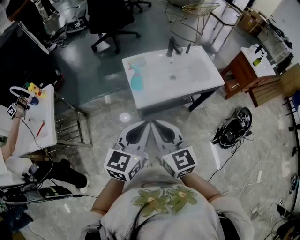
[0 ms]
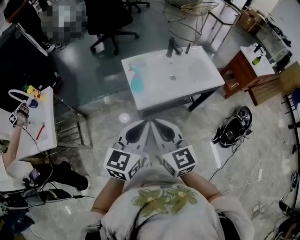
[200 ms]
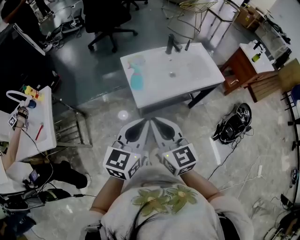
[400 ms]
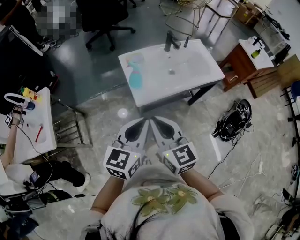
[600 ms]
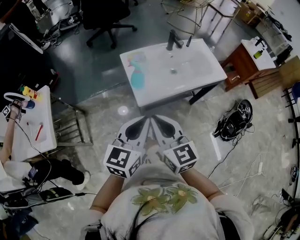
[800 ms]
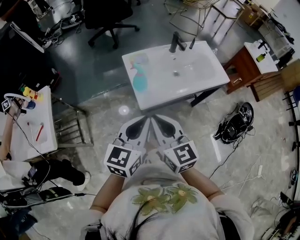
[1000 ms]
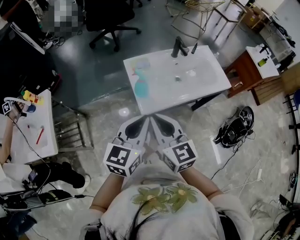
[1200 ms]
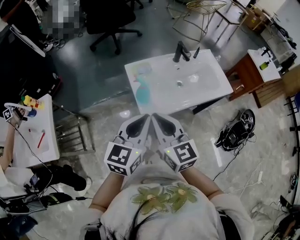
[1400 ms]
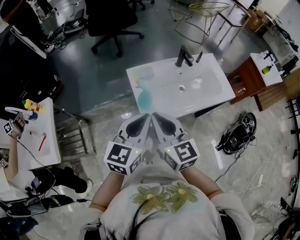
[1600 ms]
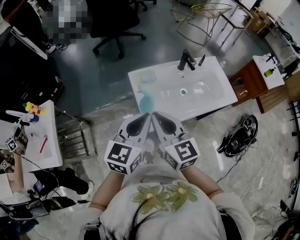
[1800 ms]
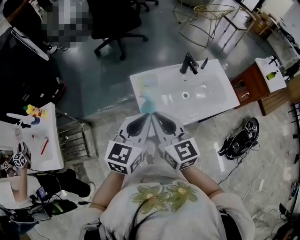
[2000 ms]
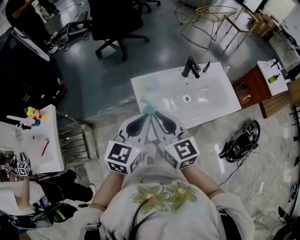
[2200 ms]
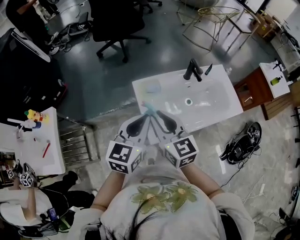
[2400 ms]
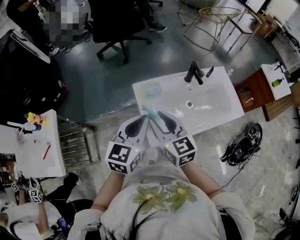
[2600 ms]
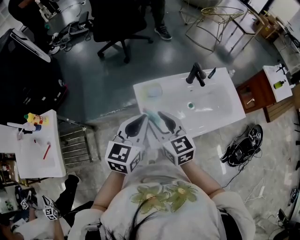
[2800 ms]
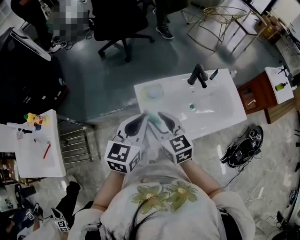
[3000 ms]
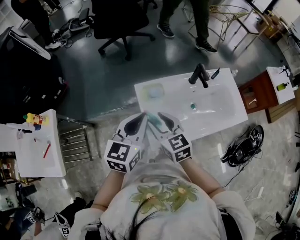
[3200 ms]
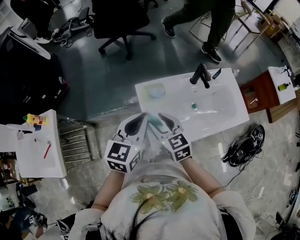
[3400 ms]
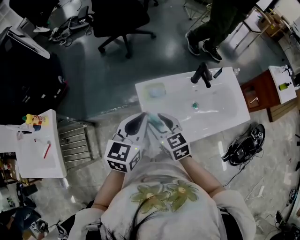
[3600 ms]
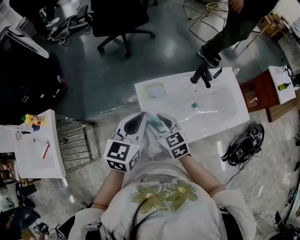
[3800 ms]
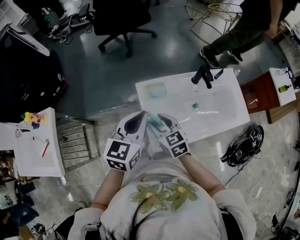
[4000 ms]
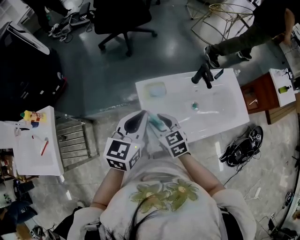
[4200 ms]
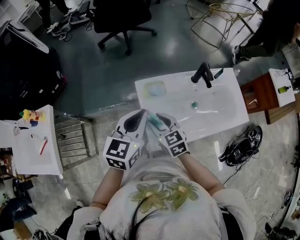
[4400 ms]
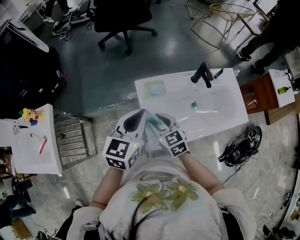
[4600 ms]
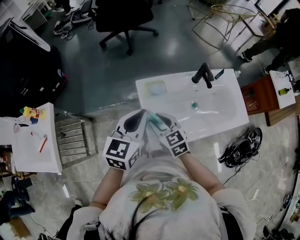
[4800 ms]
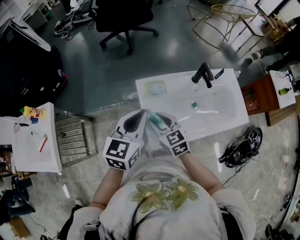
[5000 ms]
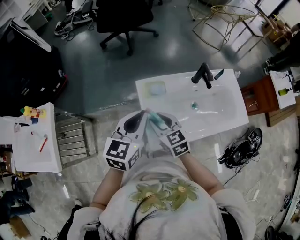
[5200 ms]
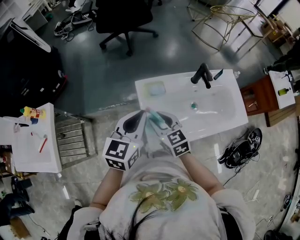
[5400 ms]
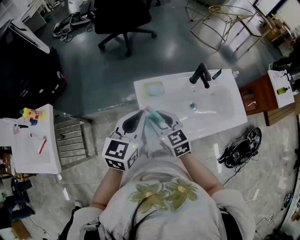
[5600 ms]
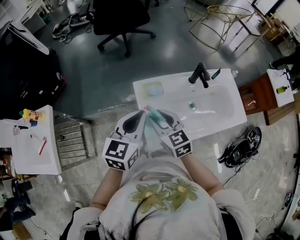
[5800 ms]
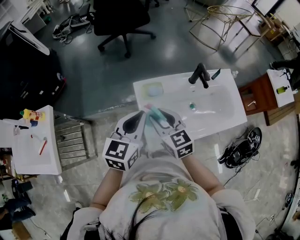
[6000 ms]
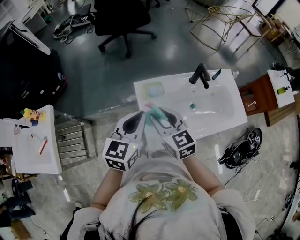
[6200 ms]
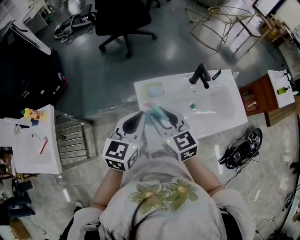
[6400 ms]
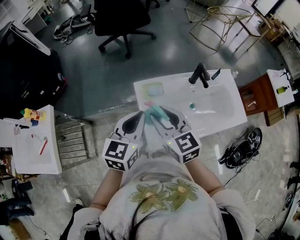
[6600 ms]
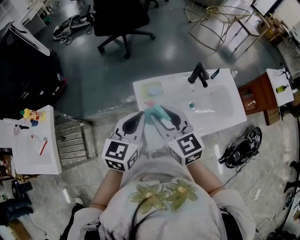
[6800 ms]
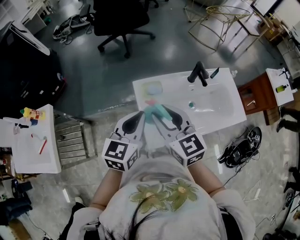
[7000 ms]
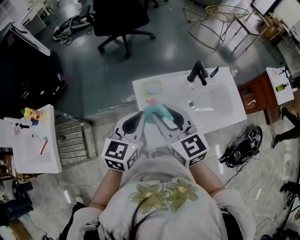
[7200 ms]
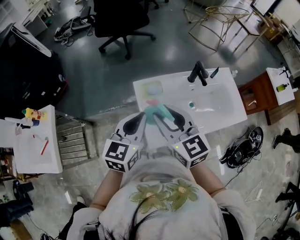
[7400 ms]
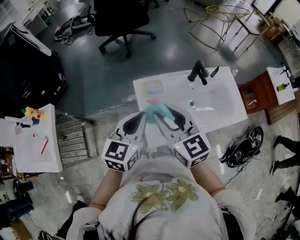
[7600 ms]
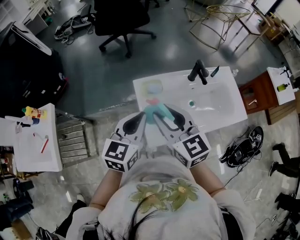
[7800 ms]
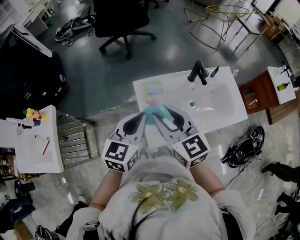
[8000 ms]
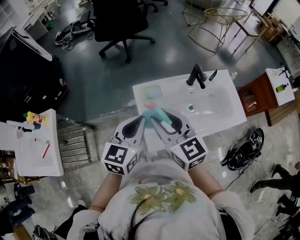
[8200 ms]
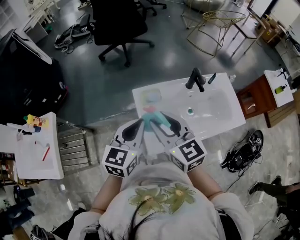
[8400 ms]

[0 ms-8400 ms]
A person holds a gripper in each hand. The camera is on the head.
0 ms to 1400 ms: Both grippers move forward, roughly 10 cm.
1400 ms to 2800 ms: The two grippers go about 15 cm forward. The right gripper opens its fingers.
2800 ms to 4200 ms: The right gripper is displaced downward by roughly 10 cm.
4200 ms to 5600 ms: There are only small adjustments of the grippers.
5600 ms to 7000 ms: The right gripper heads upward, covering some 10 cm.
7000 ms to 8400 ms: The grippers move only a little.

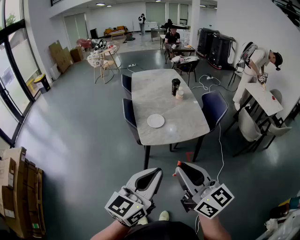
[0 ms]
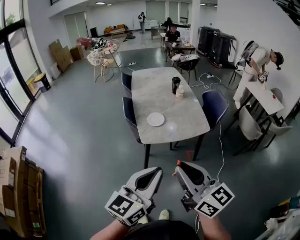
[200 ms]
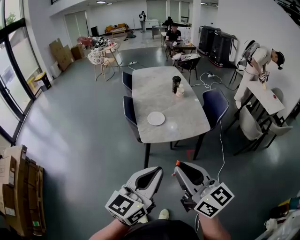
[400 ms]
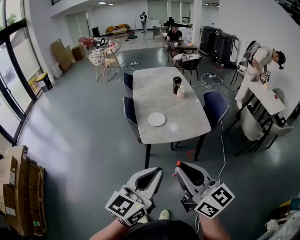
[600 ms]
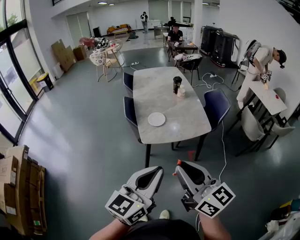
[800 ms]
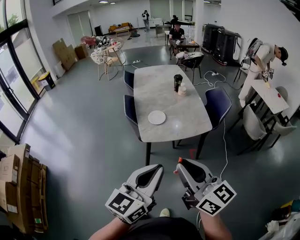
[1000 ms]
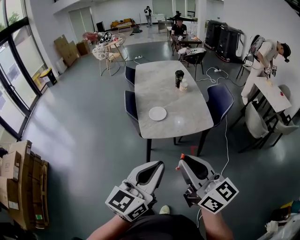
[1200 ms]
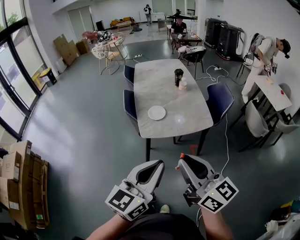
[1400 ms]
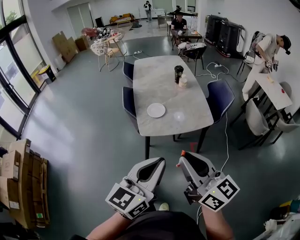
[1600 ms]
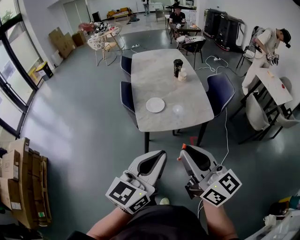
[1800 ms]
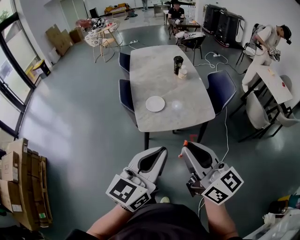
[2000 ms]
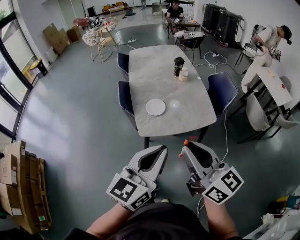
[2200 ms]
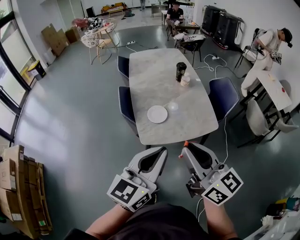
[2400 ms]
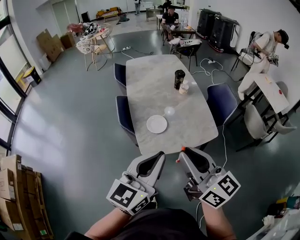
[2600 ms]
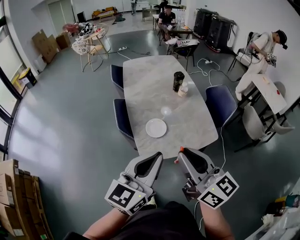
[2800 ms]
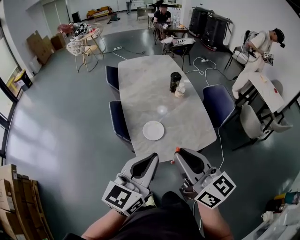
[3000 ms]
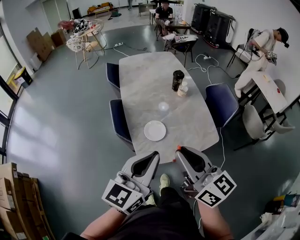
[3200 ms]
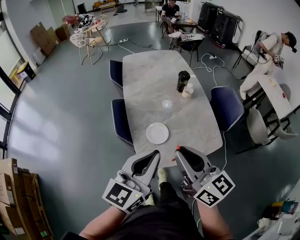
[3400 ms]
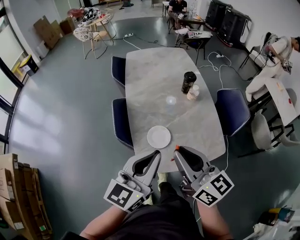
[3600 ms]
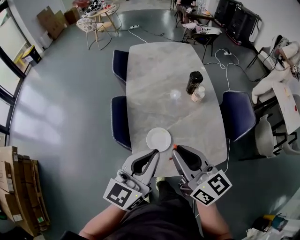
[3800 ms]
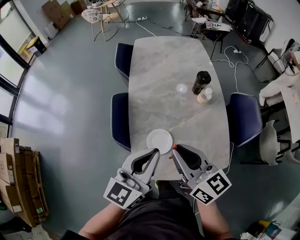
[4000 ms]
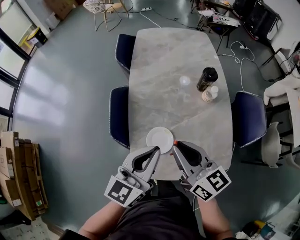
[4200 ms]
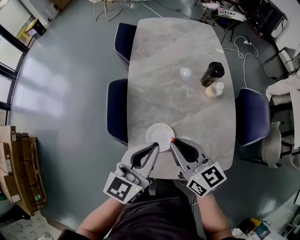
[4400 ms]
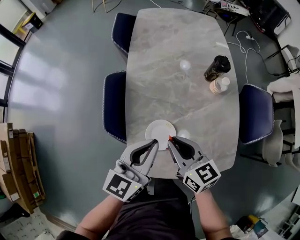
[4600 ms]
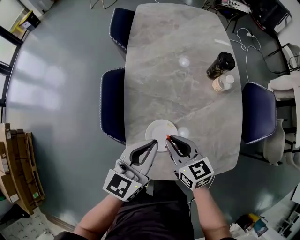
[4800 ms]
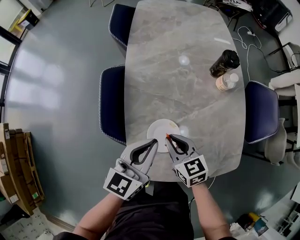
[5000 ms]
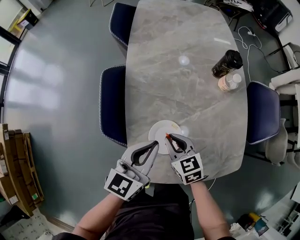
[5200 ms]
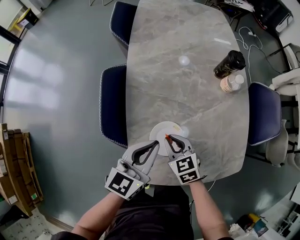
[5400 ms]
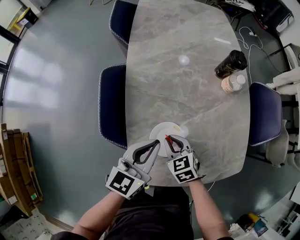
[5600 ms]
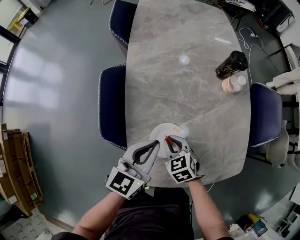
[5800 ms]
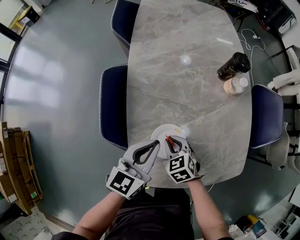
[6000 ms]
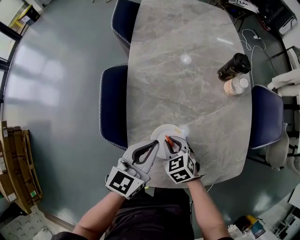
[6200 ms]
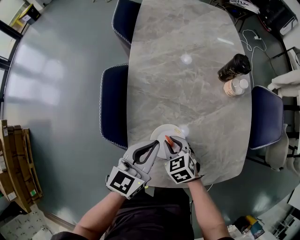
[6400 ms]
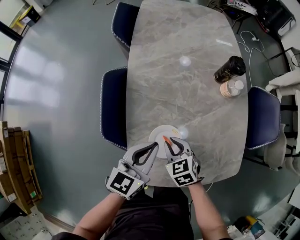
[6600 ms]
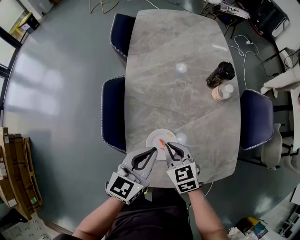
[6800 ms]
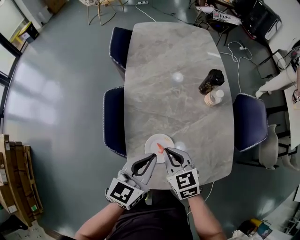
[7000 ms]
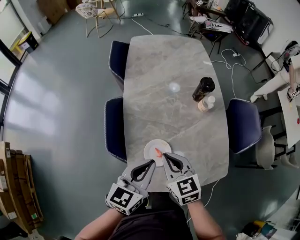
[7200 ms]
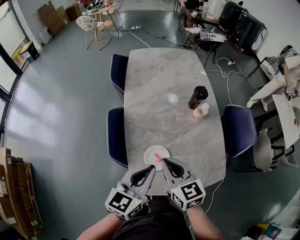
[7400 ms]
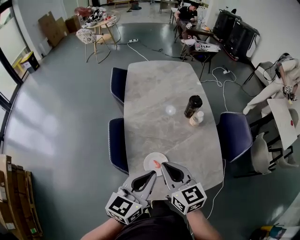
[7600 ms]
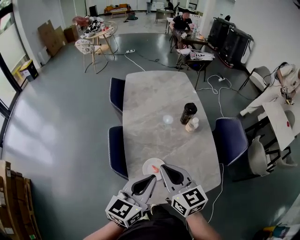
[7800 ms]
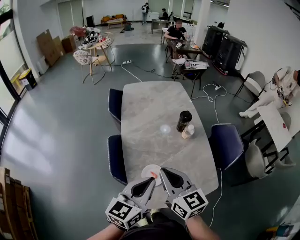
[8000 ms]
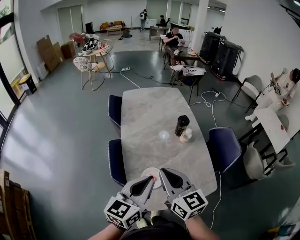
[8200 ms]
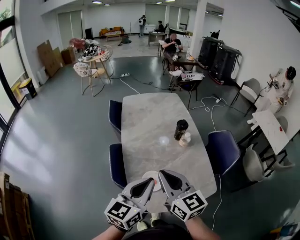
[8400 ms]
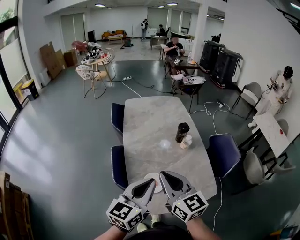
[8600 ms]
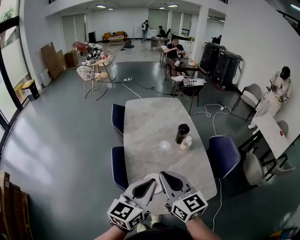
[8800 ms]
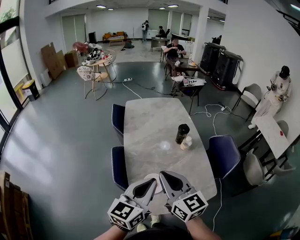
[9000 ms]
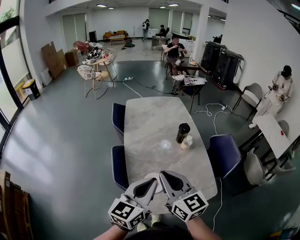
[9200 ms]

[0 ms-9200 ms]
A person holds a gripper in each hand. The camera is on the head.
0 ms to 1600 ms: Both grippers move to the right, some 5 cm.
1600 ms to 3000 ms: The left gripper moves forward, roughly 25 cm. Meanwhile the right gripper shifts roughly 25 cm forward and to the left.
3000 ms to 4600 ms: The grippers both shift forward and downward by approximately 35 cm. The right gripper swivels approximately 30 degrees.
4600 ms to 6200 ms: The right gripper heads downward, covering roughly 20 cm, and tips its fingers downward by approximately 30 degrees. Meanwhile the left gripper travels downward by some 10 cm.
6200 ms to 7600 ms: The right gripper heads upward, covering approximately 35 cm, and angles its fingers upward, by roughly 40 degrees; the left gripper goes some 20 cm upward.
7600 ms to 9200 ms: The two grippers go some 10 cm upward.

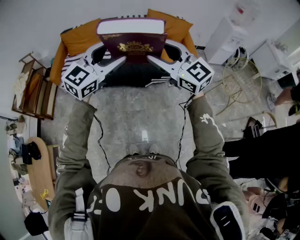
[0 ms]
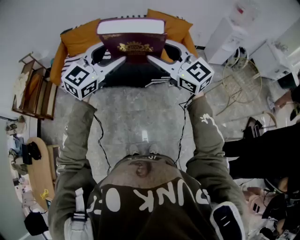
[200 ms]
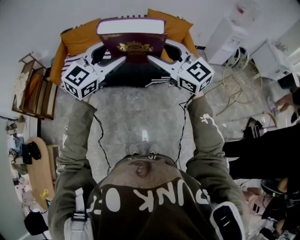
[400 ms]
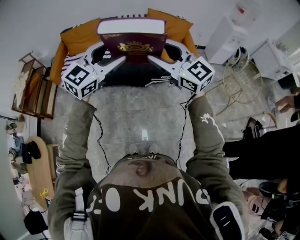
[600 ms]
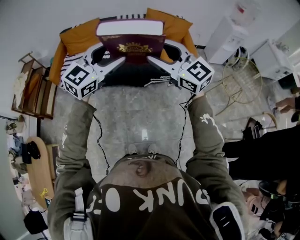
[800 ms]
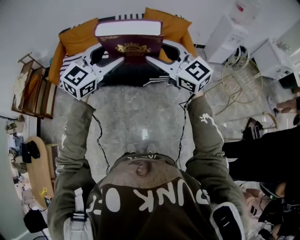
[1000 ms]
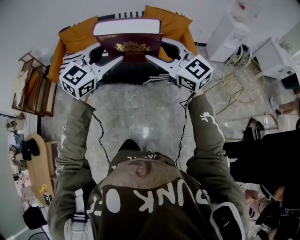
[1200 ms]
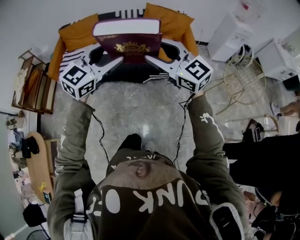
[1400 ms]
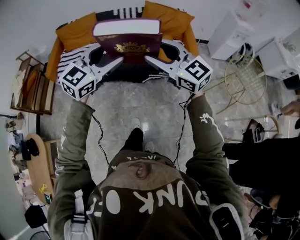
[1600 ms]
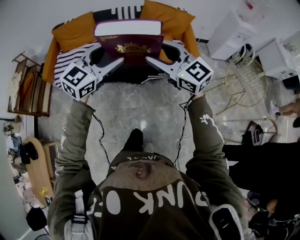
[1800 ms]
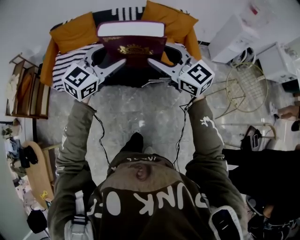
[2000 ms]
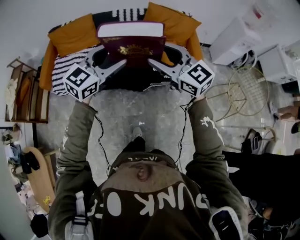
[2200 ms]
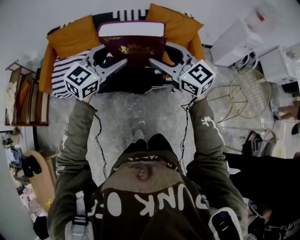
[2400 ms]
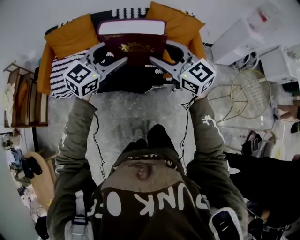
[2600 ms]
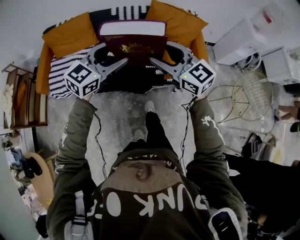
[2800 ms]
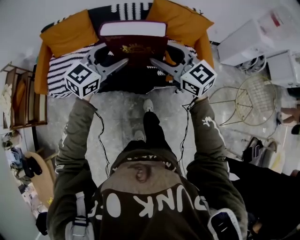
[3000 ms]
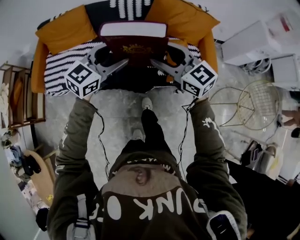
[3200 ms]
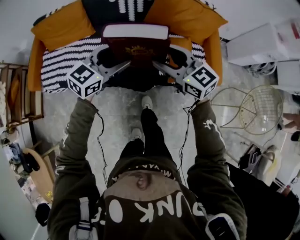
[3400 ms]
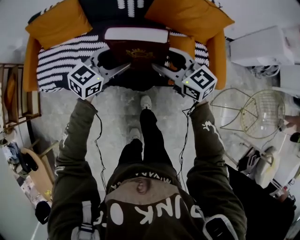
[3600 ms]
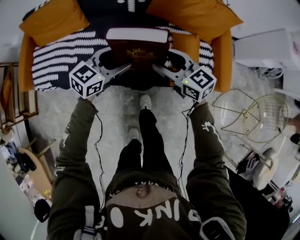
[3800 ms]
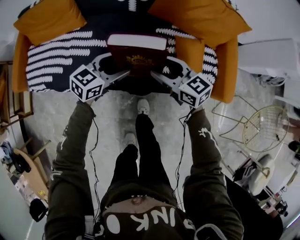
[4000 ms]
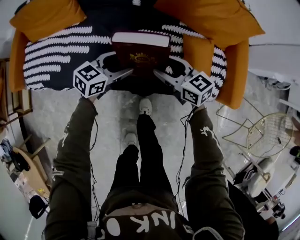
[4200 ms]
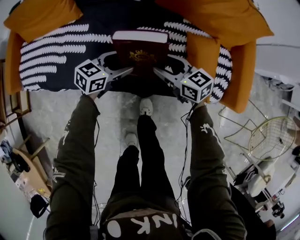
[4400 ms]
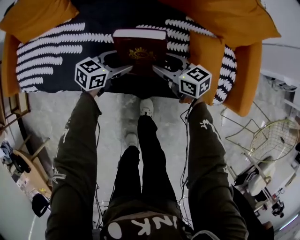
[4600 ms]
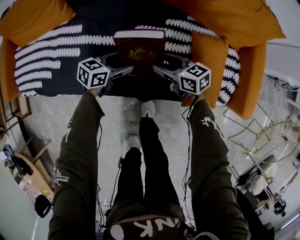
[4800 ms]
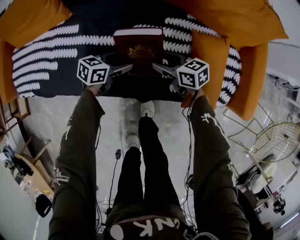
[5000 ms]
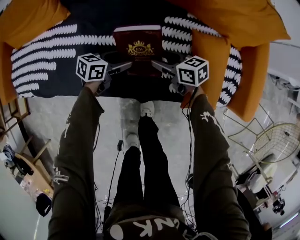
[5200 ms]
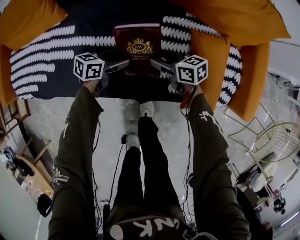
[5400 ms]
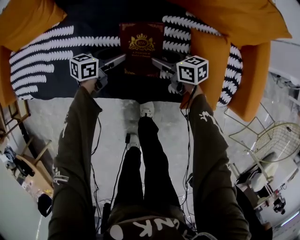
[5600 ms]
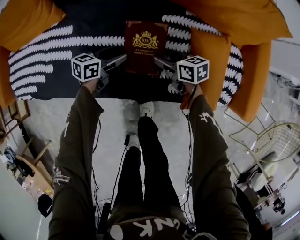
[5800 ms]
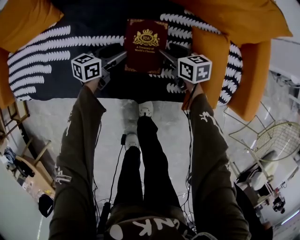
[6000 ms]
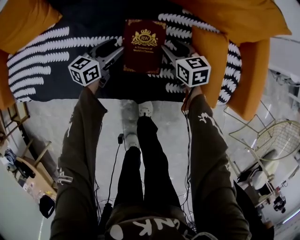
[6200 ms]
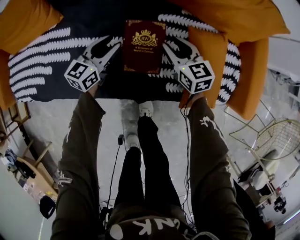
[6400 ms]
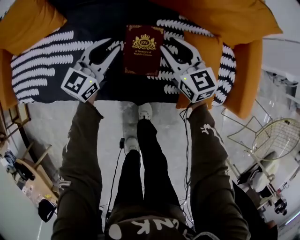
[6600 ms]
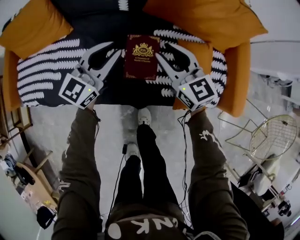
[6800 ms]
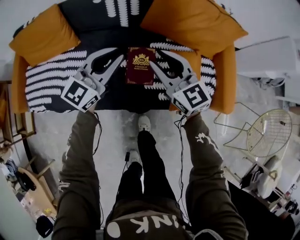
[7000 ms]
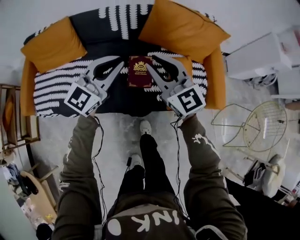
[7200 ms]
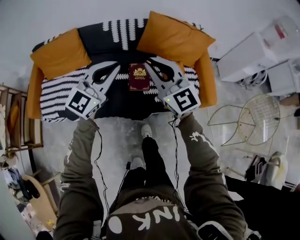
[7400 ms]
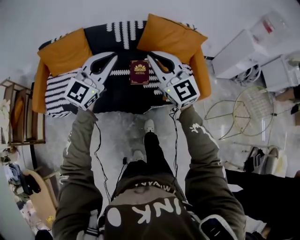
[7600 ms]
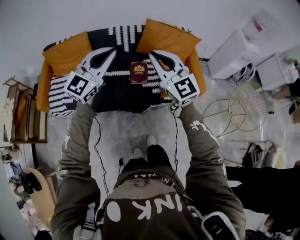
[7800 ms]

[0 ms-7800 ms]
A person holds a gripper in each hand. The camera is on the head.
0 ms to 1600 ms: The grippers both shift to the right and forward by some 10 cm.
1600 ms to 3200 ms: The two grippers go some 40 cm forward and downward.
3200 ms to 4600 ms: Both grippers move downward, approximately 50 cm. The right gripper swivels roughly 30 degrees; the left gripper swivels about 30 degrees.
4600 ms to 6200 ms: The right gripper ends up some 15 cm from where it was, and changes its angle by some 20 degrees. The left gripper shifts by some 10 cm.
6200 ms to 7800 ms: The grippers both shift upward and backward by some 70 cm. The right gripper angles its fingers upward, by approximately 40 degrees, and closes its fingers. The left gripper rolls clockwise, seen from behind, by roughly 50 degrees, and closes up.
